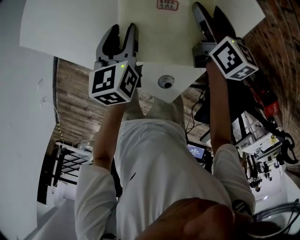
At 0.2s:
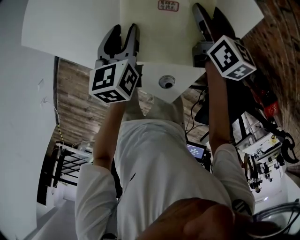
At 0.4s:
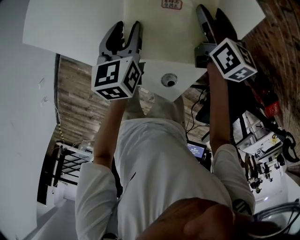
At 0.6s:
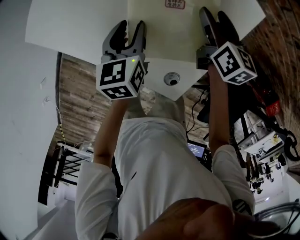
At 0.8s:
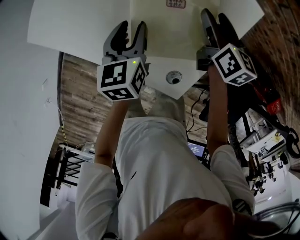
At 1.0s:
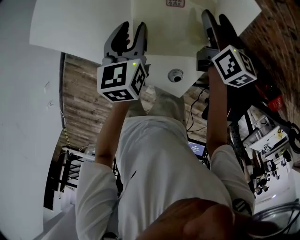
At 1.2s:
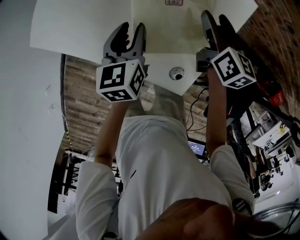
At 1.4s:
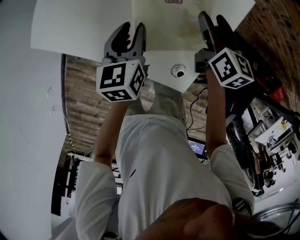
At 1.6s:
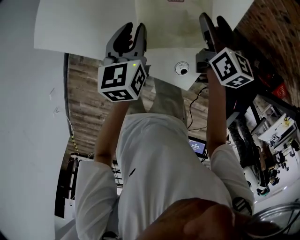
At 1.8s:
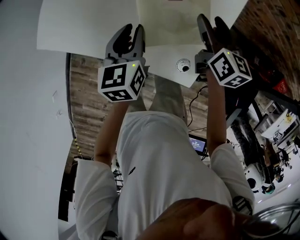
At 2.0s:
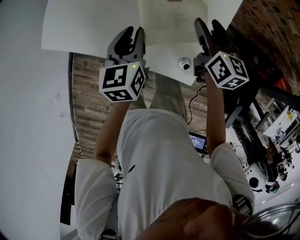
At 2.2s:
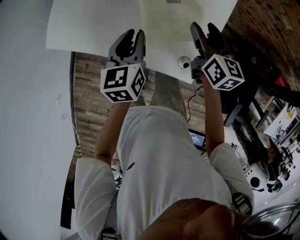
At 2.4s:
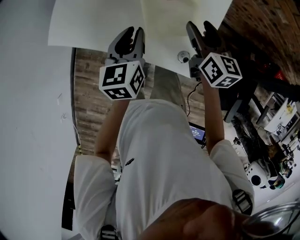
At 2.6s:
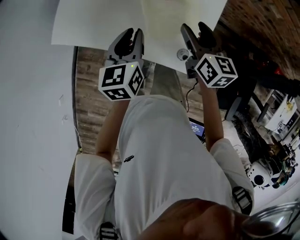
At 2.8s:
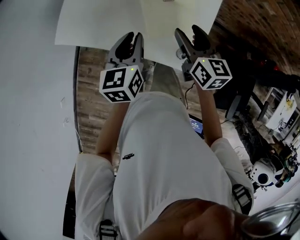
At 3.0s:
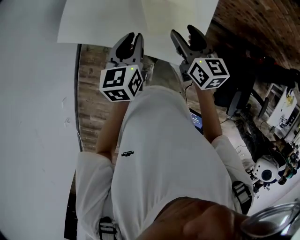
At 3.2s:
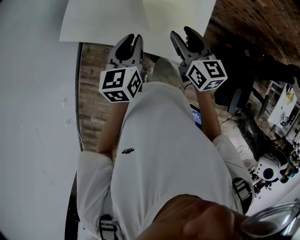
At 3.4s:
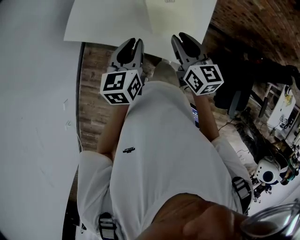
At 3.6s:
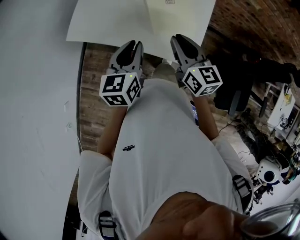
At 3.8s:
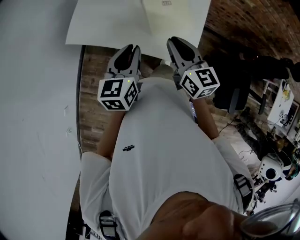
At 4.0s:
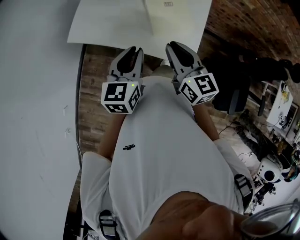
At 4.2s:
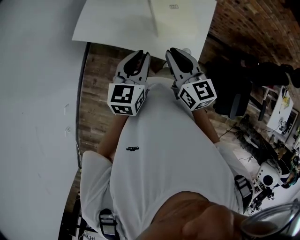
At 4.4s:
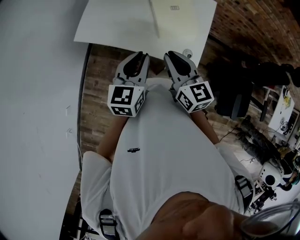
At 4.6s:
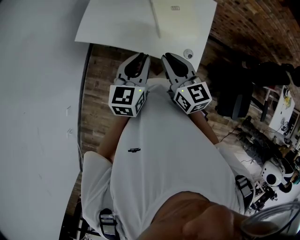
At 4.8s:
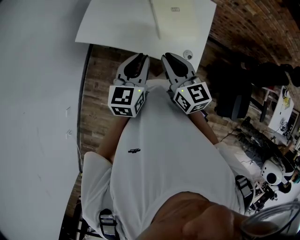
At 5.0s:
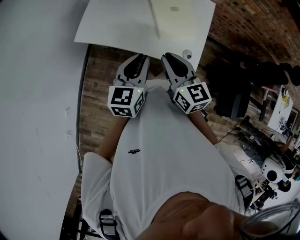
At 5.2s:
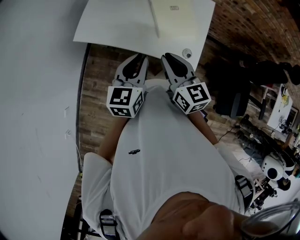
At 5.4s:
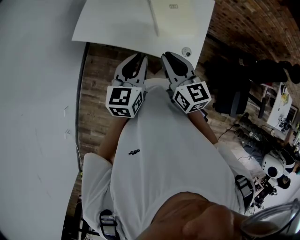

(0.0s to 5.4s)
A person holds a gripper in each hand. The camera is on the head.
0.0s - 1.4s: The left gripper travels upward by roughly 5 cm. Meanwhile the right gripper heads upward and backward, covering some 10 cm.
1.4s - 2.8s: The right gripper is displaced upward, backward and to the left by about 25 cm. The left gripper goes roughly 20 cm upward and backward.
2.8s - 4.0s: The grippers both shift backward, upward and to the left by approximately 20 cm. The right gripper closes its fingers.
4.0s - 5.4s: The right gripper moves to the left, about 5 cm. Meanwhile the left gripper ends up approximately 5 cm from where it was.

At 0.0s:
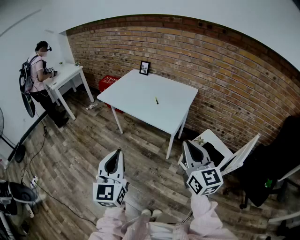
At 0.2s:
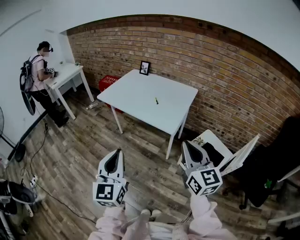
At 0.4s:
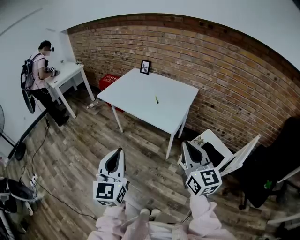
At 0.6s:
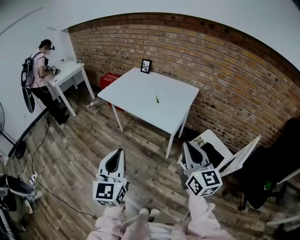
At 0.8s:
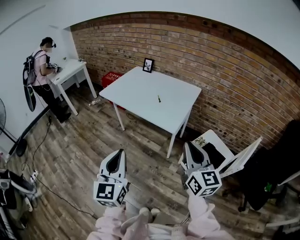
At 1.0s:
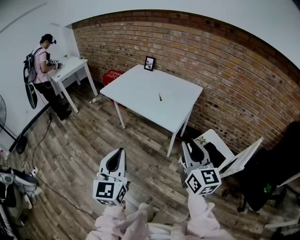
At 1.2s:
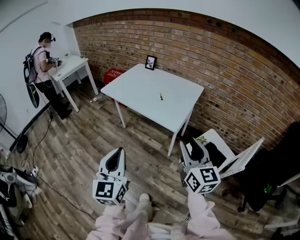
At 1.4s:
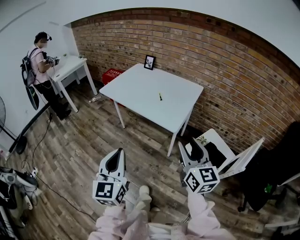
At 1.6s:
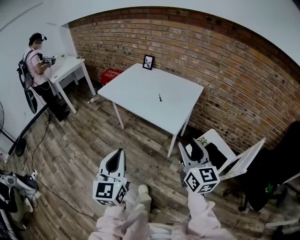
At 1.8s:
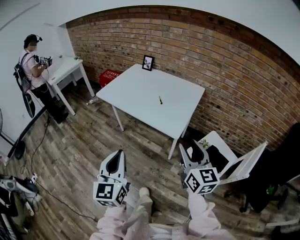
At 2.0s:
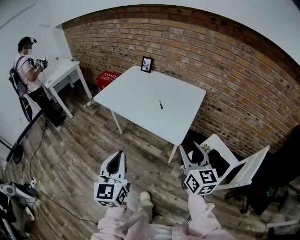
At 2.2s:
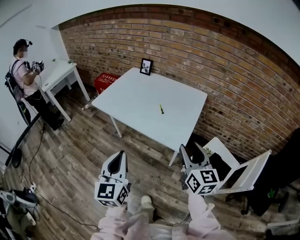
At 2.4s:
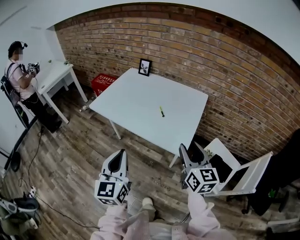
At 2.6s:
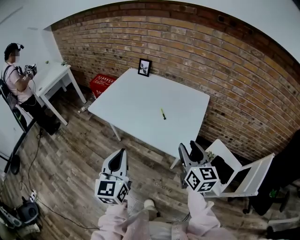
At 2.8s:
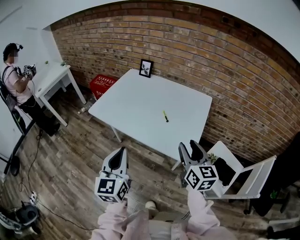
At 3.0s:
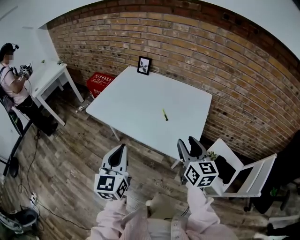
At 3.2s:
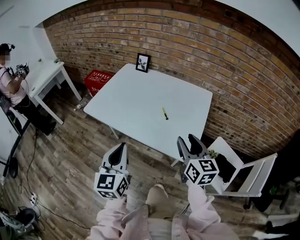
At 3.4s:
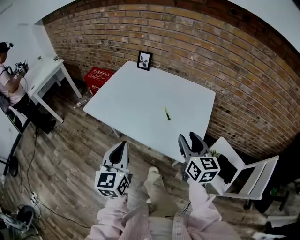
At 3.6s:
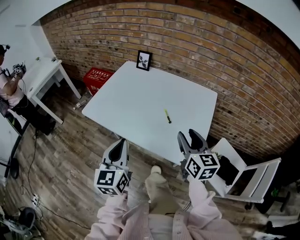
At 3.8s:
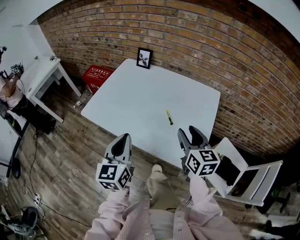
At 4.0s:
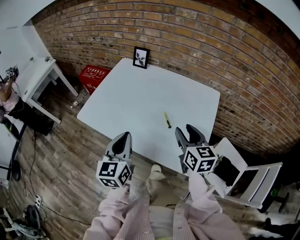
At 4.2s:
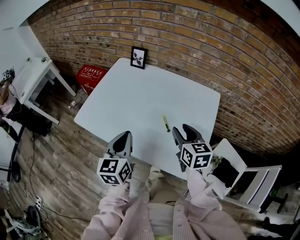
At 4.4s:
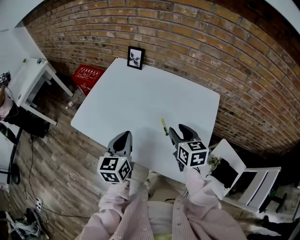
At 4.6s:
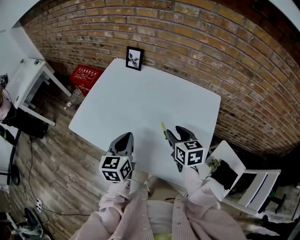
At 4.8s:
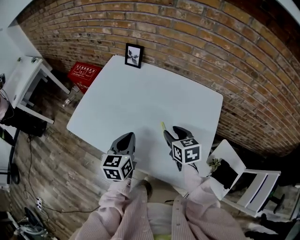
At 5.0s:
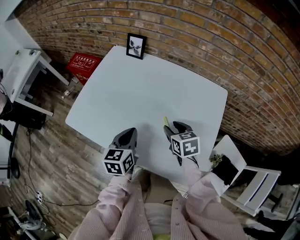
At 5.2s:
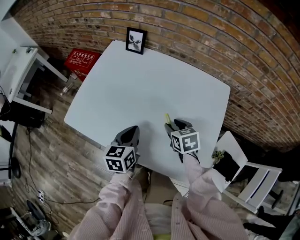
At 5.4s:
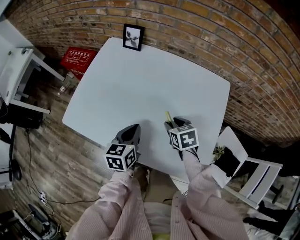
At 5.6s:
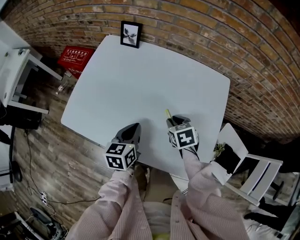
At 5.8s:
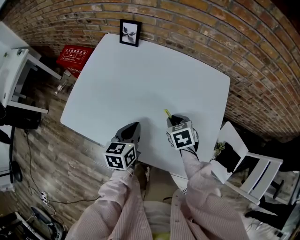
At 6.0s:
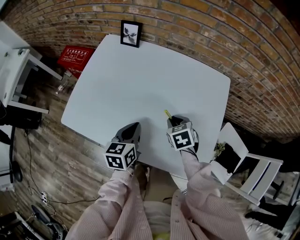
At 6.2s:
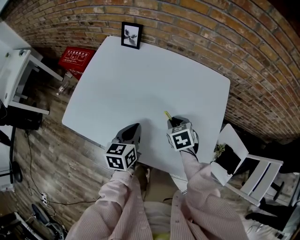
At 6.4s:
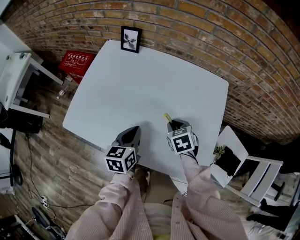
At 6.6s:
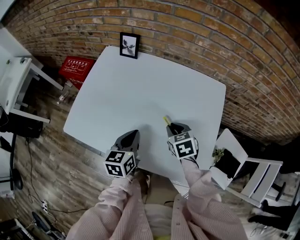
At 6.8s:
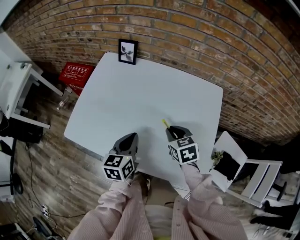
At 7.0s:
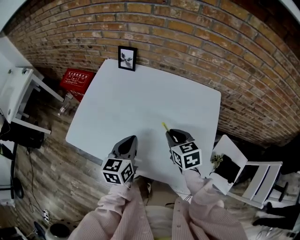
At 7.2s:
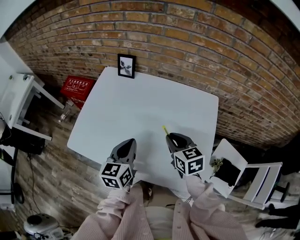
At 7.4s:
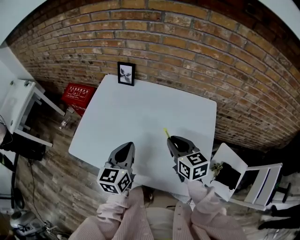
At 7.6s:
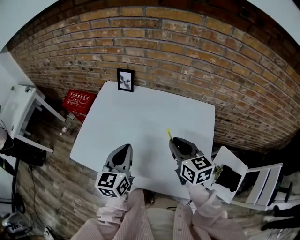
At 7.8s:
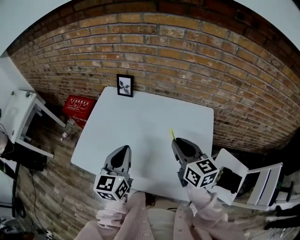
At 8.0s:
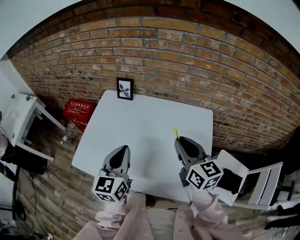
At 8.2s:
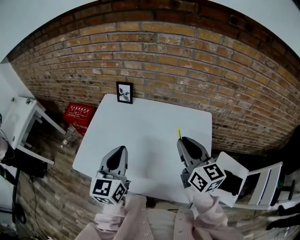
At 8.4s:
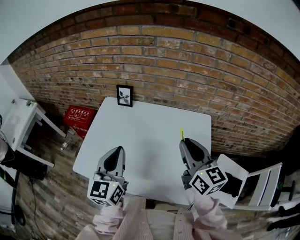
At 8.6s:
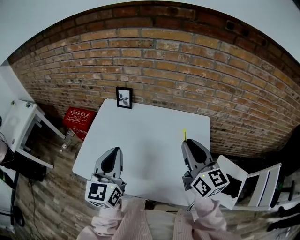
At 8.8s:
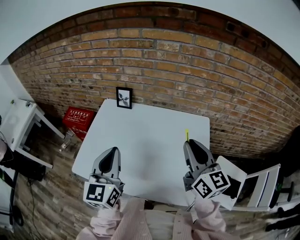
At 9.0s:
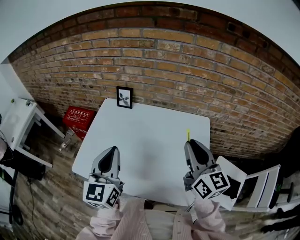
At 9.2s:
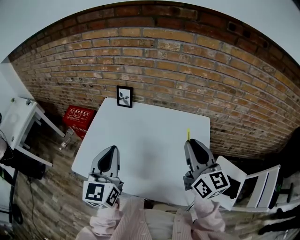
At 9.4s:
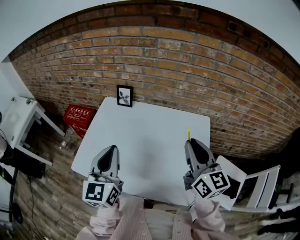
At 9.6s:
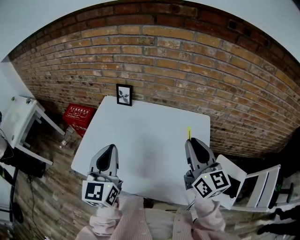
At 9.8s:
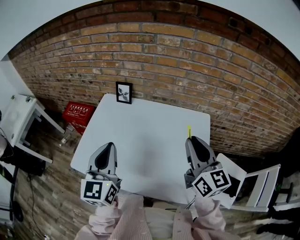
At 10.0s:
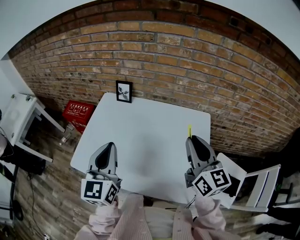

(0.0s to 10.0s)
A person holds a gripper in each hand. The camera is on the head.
0.0s - 1.4s: The right gripper opens.
1.4s - 2.8s: The grippers both shift forward by roughly 25 cm.
2.8s - 4.2s: Both grippers travel together forward, about 20 cm.
4.2s - 5.8s: The two grippers go about 15 cm downward and forward. The right gripper tips its fingers downward by approximately 30 degrees, and closes up, while the left gripper rotates some 20 degrees.
5.8s - 7.2s: Both grippers move upward, some 10 cm. The right gripper rotates about 30 degrees.
7.2s - 8.6s: Both grippers move upward, roughly 20 cm. The left gripper swivels approximately 20 degrees, while the right gripper angles its fingers upward, by some 30 degrees.
8.6s - 10.0s: The grippers make only small movements.

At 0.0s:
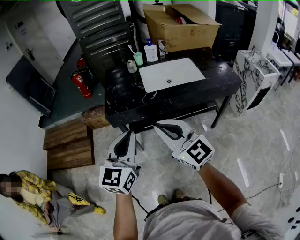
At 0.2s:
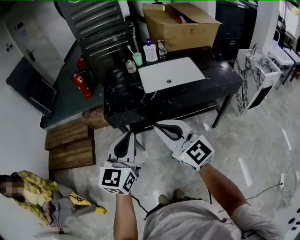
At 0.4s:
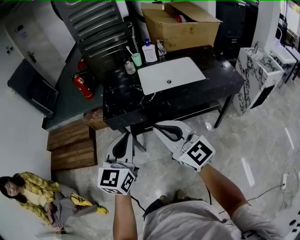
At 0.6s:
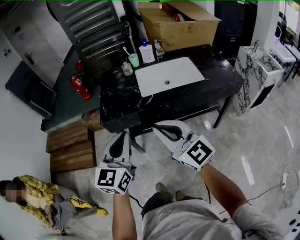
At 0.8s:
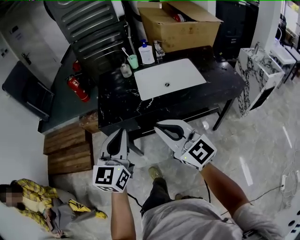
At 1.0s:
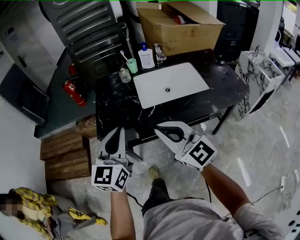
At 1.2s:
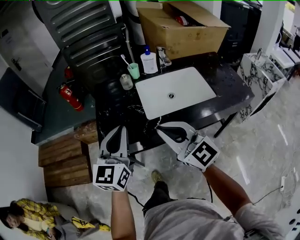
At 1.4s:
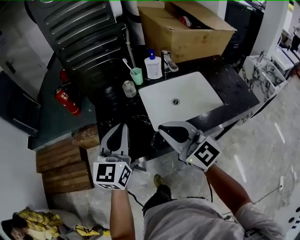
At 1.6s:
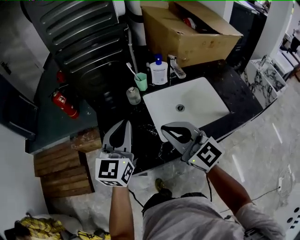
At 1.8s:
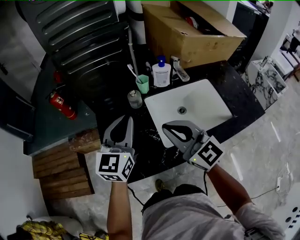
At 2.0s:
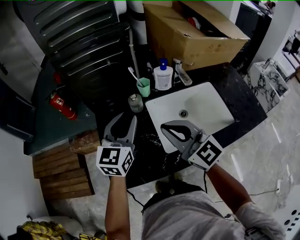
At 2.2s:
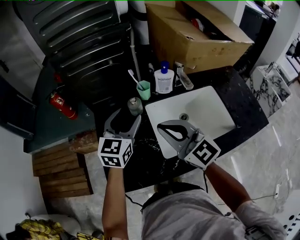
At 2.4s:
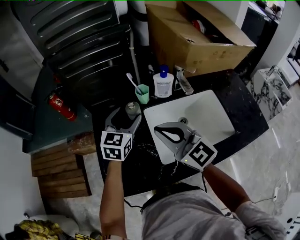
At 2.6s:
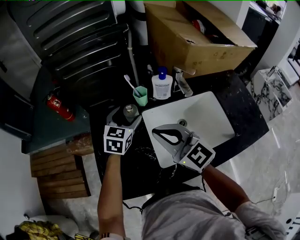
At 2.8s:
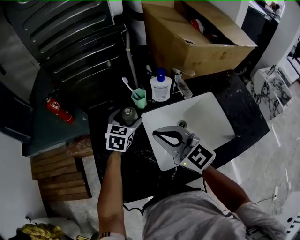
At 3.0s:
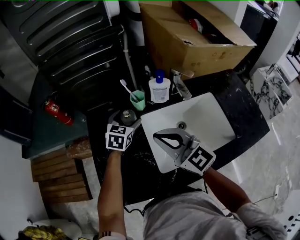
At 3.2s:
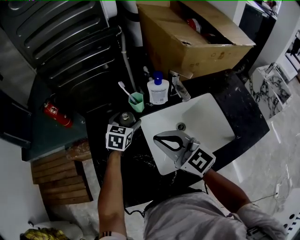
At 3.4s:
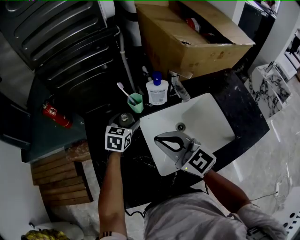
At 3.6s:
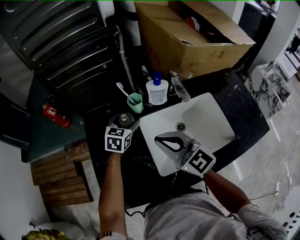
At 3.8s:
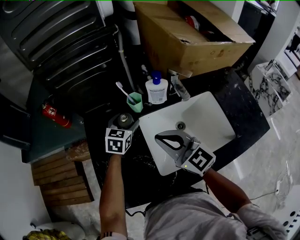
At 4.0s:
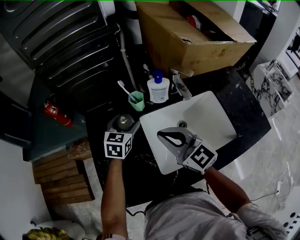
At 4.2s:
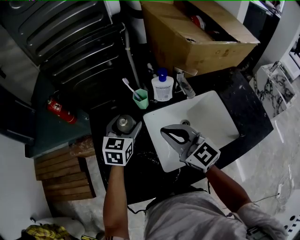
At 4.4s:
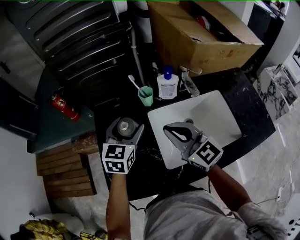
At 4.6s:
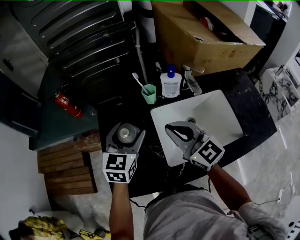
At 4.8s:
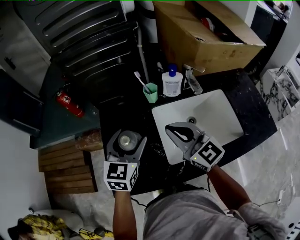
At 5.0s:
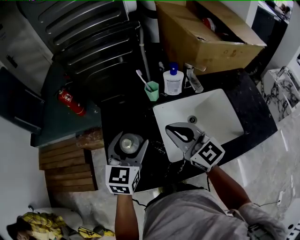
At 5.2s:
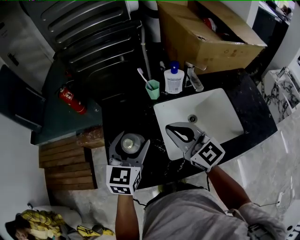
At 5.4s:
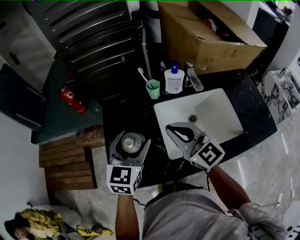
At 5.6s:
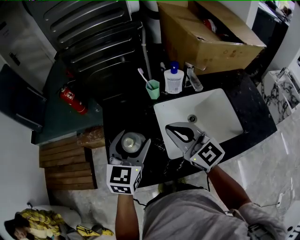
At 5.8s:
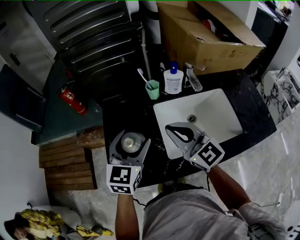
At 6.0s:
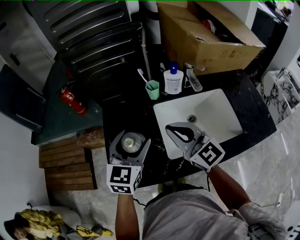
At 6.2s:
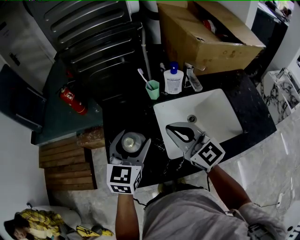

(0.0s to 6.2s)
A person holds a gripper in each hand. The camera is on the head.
0.0s - 1.6s: The two grippers go roughly 40 cm forward.
1.6s - 3.2s: The left gripper shifts approximately 30 cm forward and downward, angles its fingers downward, by approximately 30 degrees, and opens up. Meanwhile the right gripper moves forward, approximately 15 cm.
3.2s - 4.6s: The left gripper shifts some 15 cm backward, upward and to the left.
4.6s - 6.2s: The left gripper is displaced backward by some 10 cm.

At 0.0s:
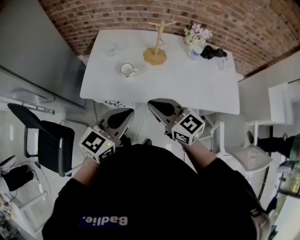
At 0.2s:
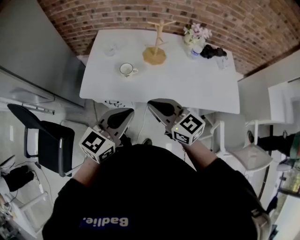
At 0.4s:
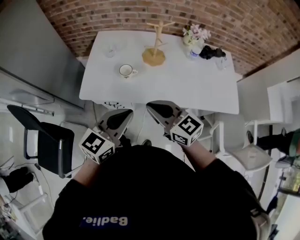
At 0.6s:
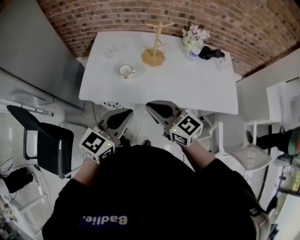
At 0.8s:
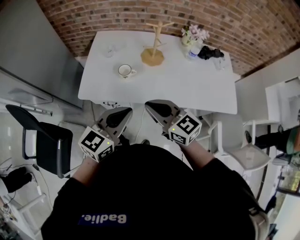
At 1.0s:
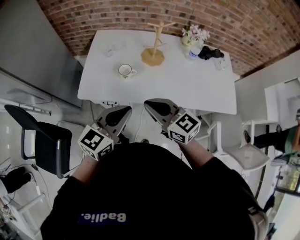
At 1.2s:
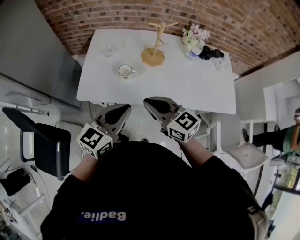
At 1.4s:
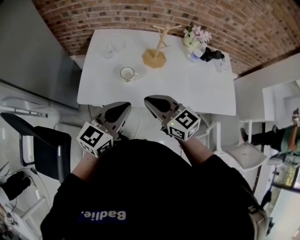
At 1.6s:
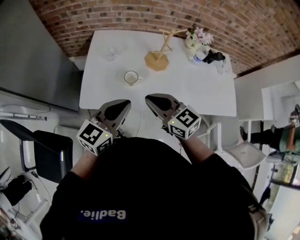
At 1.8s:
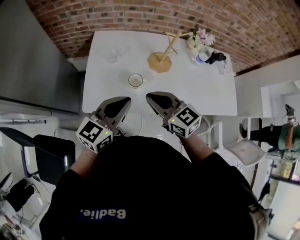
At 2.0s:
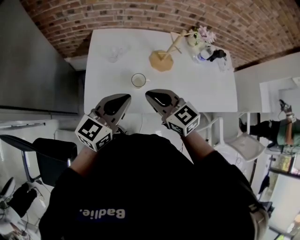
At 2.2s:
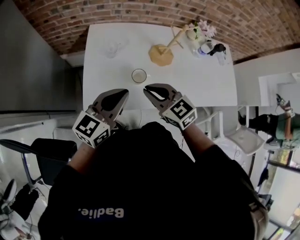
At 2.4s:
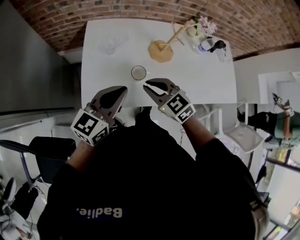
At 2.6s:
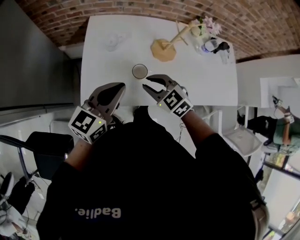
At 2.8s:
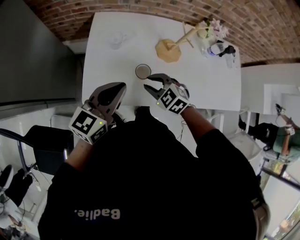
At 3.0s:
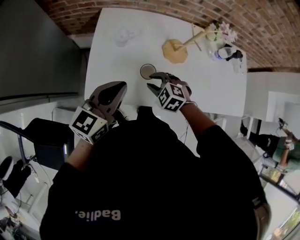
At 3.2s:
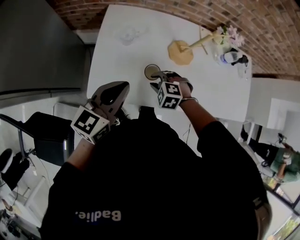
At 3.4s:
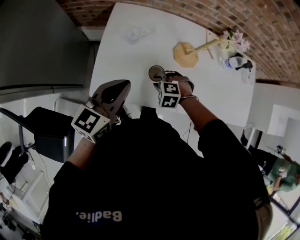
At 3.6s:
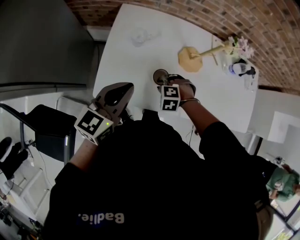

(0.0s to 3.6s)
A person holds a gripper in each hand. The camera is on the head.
0.0s - 1.8s: Both grippers move forward and to the left, roughly 15 cm.
1.8s - 3.6s: The left gripper ends up approximately 15 cm from where it was; the right gripper travels downward by about 25 cm, tilts its fingers some 60 degrees downward, and opens its fingers.
